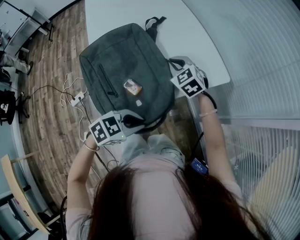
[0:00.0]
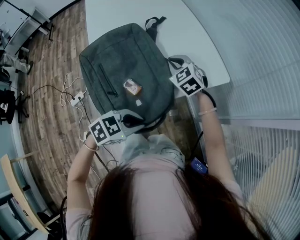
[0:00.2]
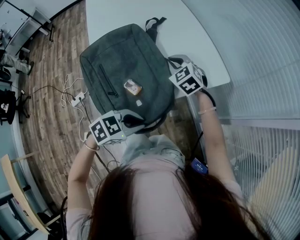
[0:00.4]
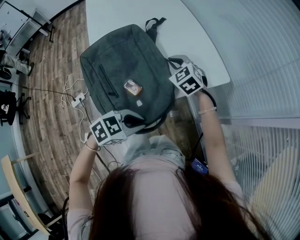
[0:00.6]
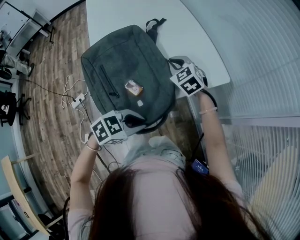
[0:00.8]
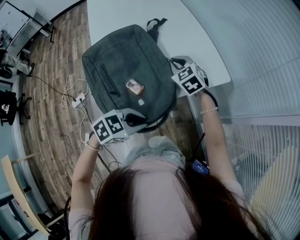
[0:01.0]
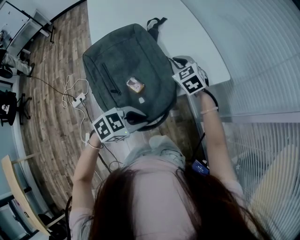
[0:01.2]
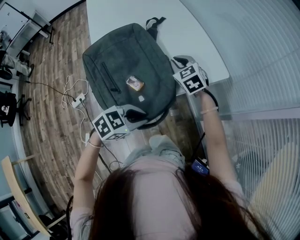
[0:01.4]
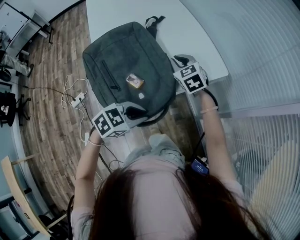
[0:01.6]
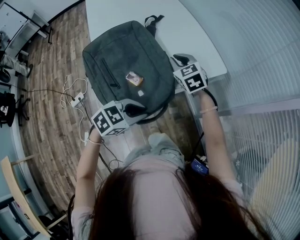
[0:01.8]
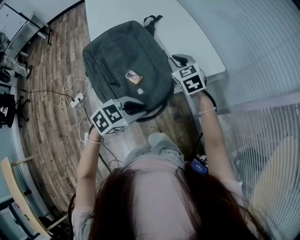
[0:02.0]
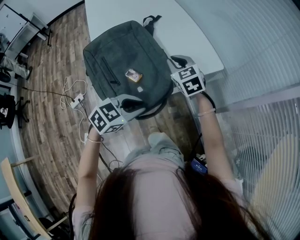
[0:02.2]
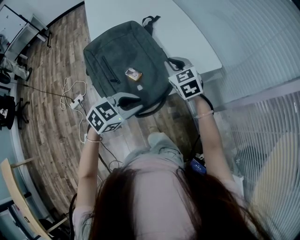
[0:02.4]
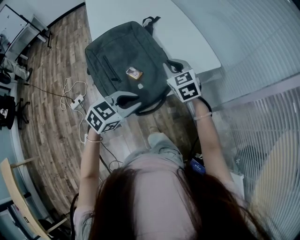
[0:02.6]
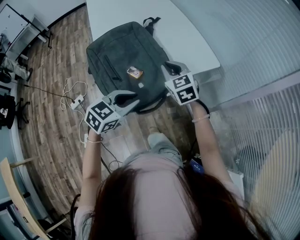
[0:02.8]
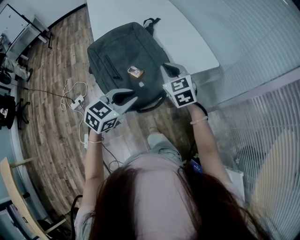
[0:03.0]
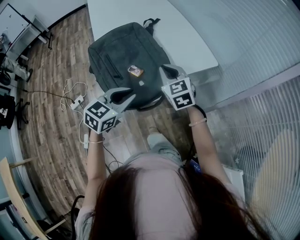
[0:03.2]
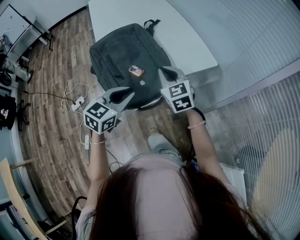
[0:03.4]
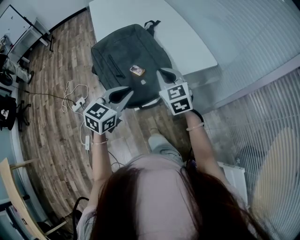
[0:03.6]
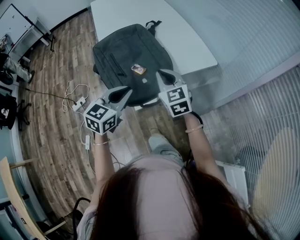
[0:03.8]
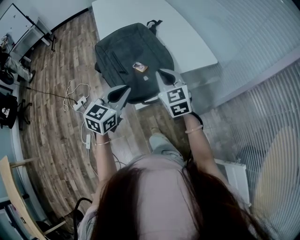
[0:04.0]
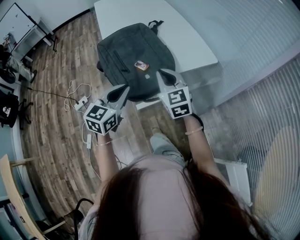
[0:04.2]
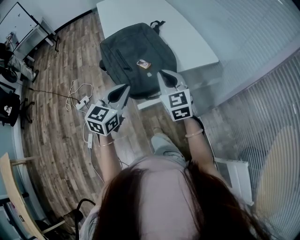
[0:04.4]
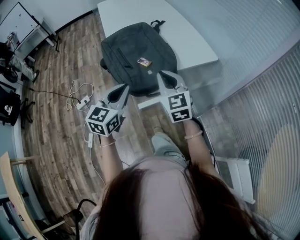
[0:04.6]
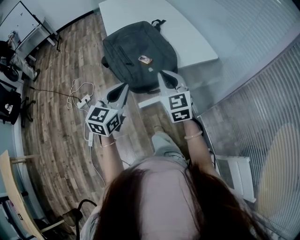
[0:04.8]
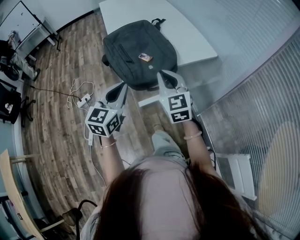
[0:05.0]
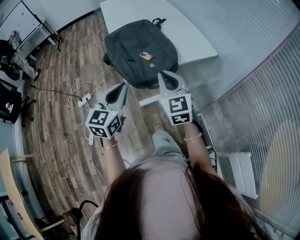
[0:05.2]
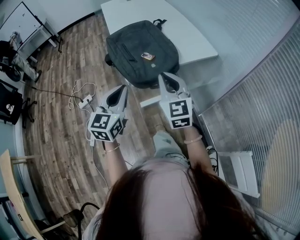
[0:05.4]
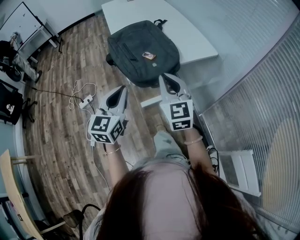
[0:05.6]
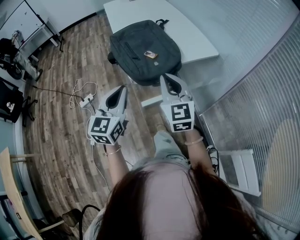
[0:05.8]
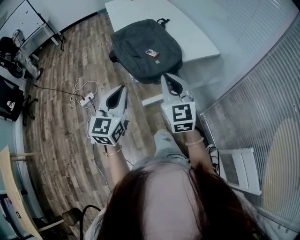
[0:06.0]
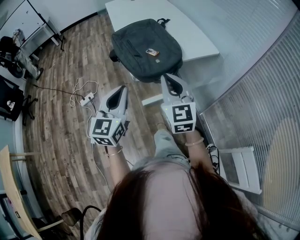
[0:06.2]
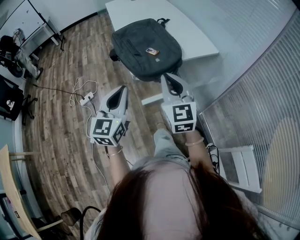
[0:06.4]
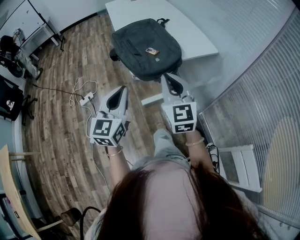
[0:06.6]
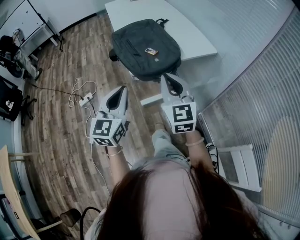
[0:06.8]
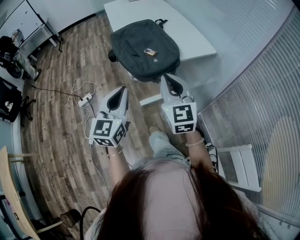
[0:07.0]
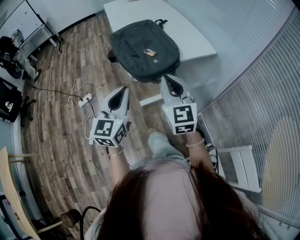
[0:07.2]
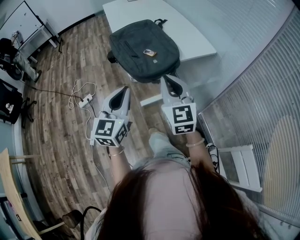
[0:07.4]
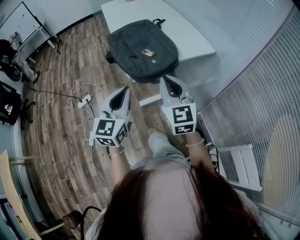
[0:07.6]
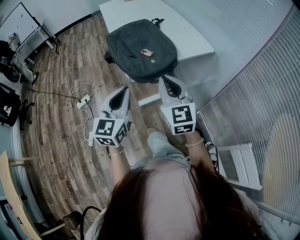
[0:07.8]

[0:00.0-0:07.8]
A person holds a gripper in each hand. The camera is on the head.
0:00.0 to 0:01.6: The grippers make only small movements.
0:01.6 to 0:03.2: The right gripper is displaced backward and upward by roughly 15 cm; the left gripper heads upward, covering about 10 cm, and swivels about 30 degrees.
0:03.2 to 0:04.6: The left gripper heads backward, upward and to the left, covering roughly 10 cm, and turns by approximately 20 degrees. The right gripper travels backward and upward by approximately 15 cm.
0:04.6 to 0:06.2: Both grippers move backward, some 15 cm.
0:06.2 to 0:07.8: The grippers move only a little.

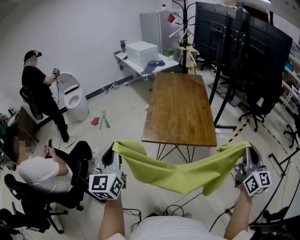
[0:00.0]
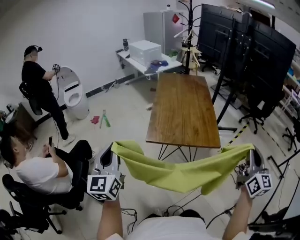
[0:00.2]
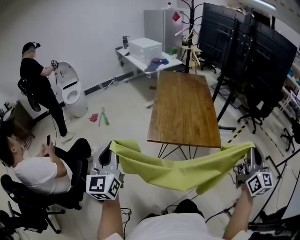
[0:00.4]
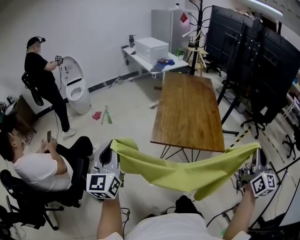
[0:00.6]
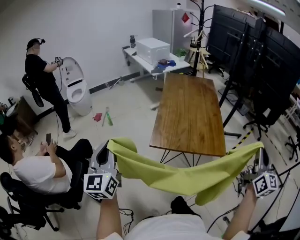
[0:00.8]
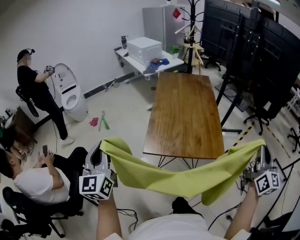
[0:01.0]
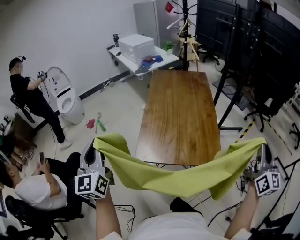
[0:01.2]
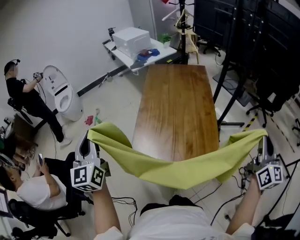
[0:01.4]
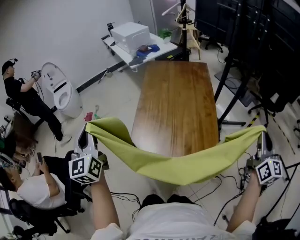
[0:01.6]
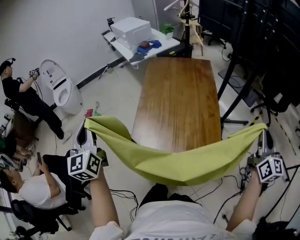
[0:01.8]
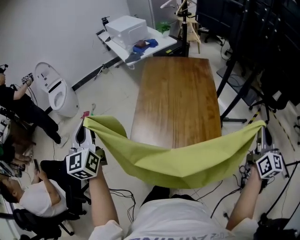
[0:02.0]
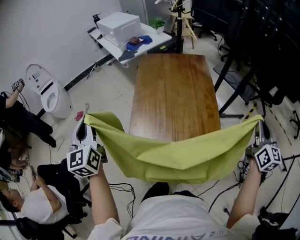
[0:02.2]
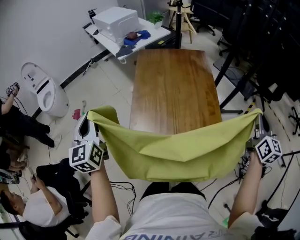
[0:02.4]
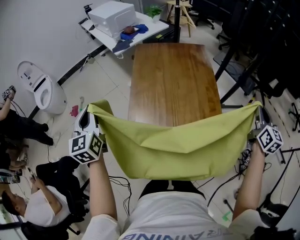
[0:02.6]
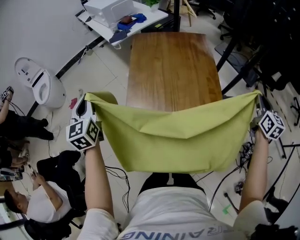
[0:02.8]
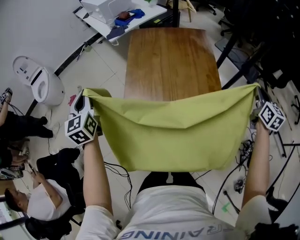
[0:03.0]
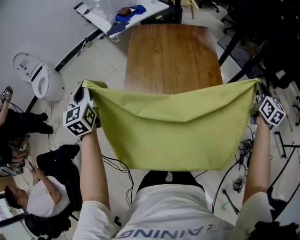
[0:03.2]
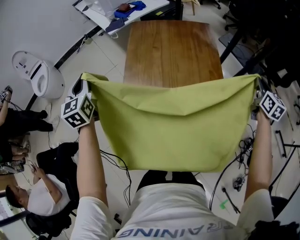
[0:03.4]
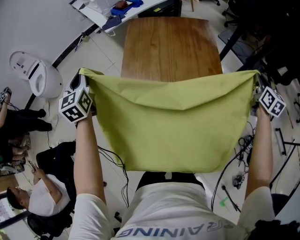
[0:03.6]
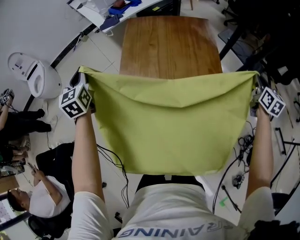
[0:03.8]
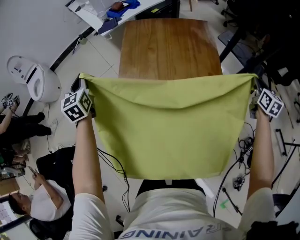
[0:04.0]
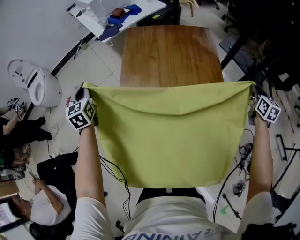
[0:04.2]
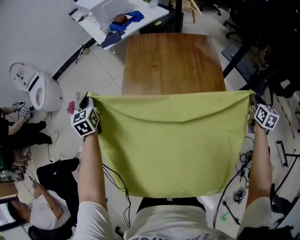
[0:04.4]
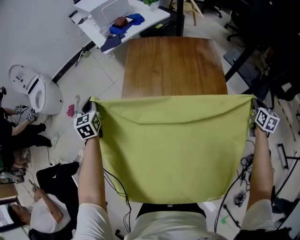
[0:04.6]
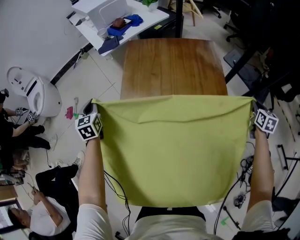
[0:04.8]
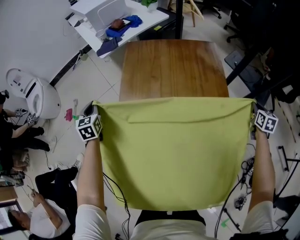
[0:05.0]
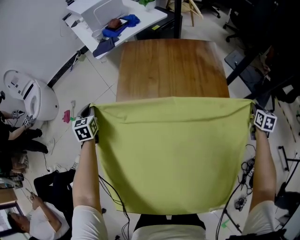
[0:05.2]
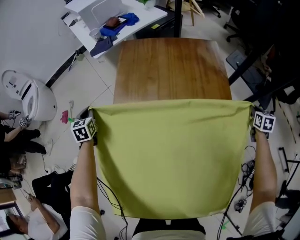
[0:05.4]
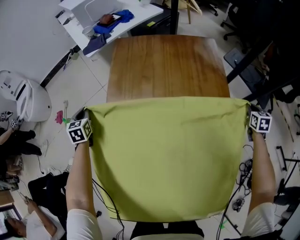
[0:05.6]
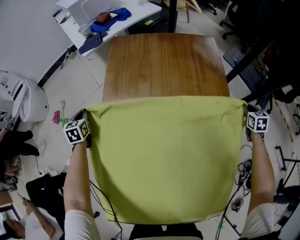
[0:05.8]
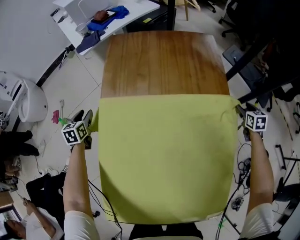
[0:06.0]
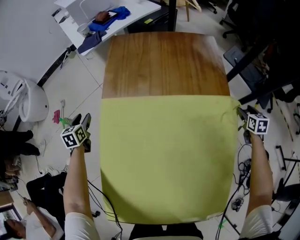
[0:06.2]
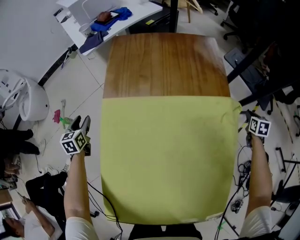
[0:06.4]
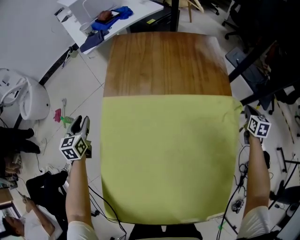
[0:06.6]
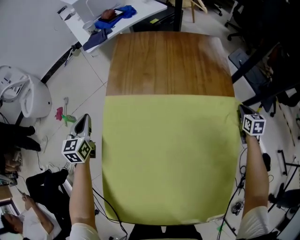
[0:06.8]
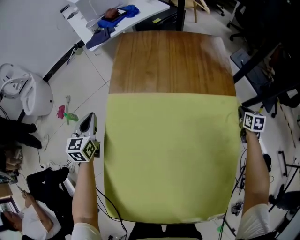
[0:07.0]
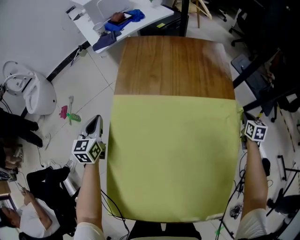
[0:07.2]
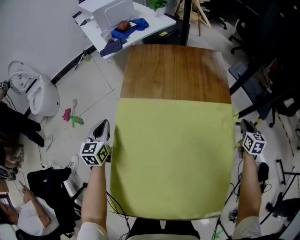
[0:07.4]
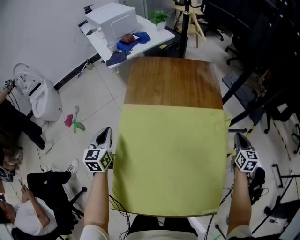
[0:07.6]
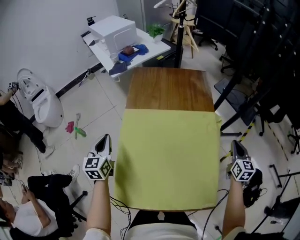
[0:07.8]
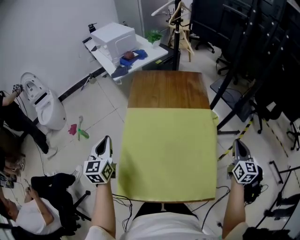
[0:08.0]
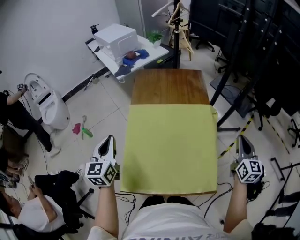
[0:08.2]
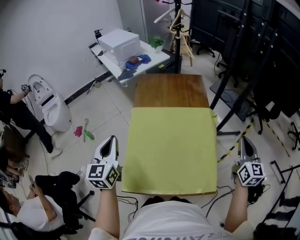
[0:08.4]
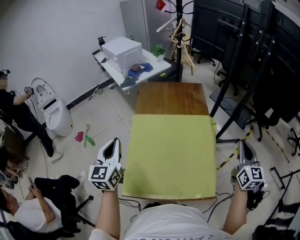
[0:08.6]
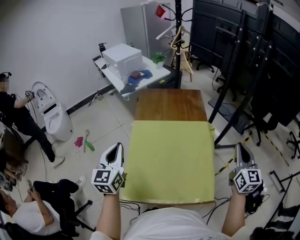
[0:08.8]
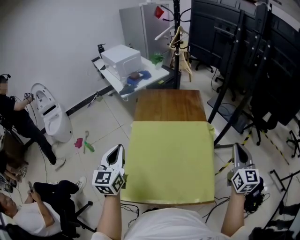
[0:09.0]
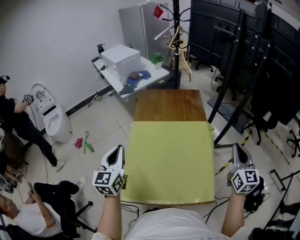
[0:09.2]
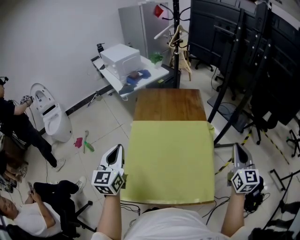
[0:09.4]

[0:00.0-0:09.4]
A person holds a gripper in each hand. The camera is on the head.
0:00.0 to 0:01.6: The two grippers go some 35 cm forward.
0:01.6 to 0:03.2: The grippers both shift forward and downward by about 35 cm. The right gripper changes its angle by approximately 20 degrees.
0:03.2 to 0:04.8: Both grippers move downward and forward, roughly 20 cm.
0:04.8 to 0:06.2: Both grippers travel together downward, about 15 cm. The left gripper opens up; the right gripper opens its fingers.
0:06.2 to 0:07.8: The right gripper shifts some 30 cm upward, backward and to the left, rotates some 30 degrees, and closes its fingers. The left gripper shifts approximately 35 cm upward, backward and to the right, changes its angle by approximately 20 degrees, and closes.
0:07.8 to 0:09.4: The left gripper heads upward, backward and to the right, covering some 25 cm; the right gripper moves upward and backward, approximately 25 cm.

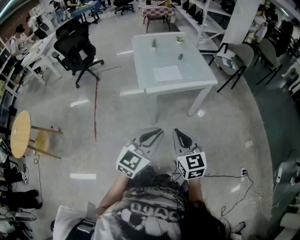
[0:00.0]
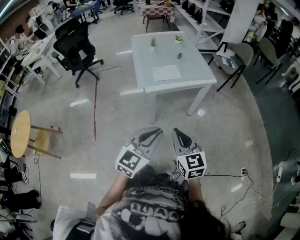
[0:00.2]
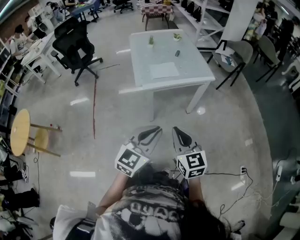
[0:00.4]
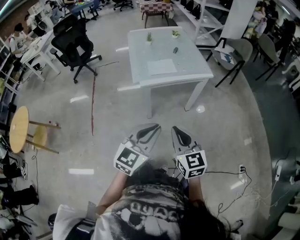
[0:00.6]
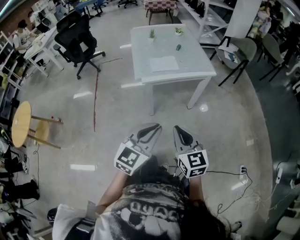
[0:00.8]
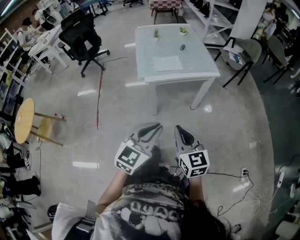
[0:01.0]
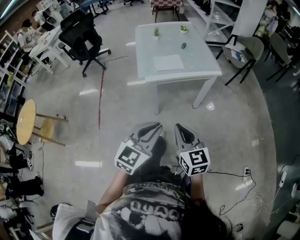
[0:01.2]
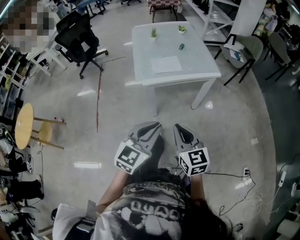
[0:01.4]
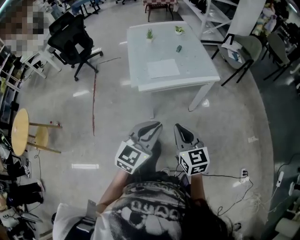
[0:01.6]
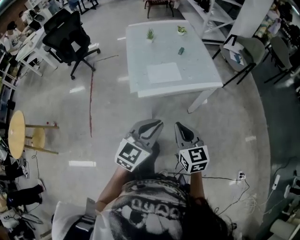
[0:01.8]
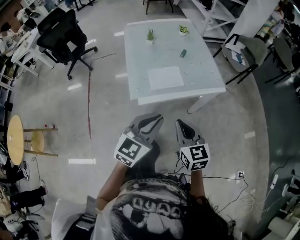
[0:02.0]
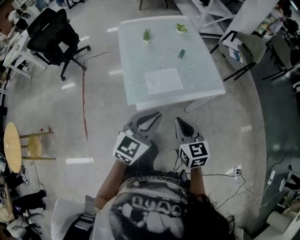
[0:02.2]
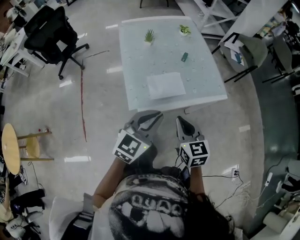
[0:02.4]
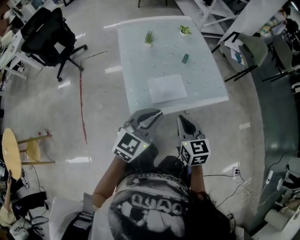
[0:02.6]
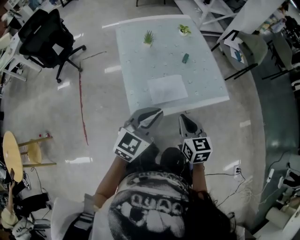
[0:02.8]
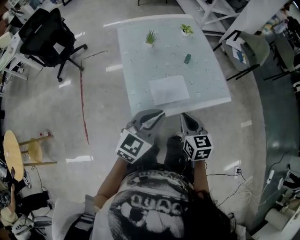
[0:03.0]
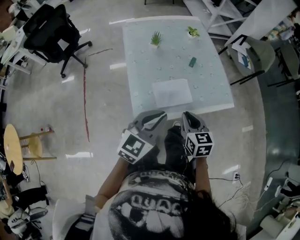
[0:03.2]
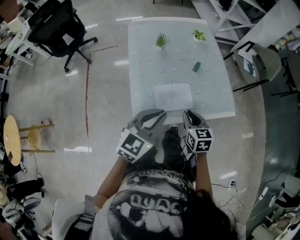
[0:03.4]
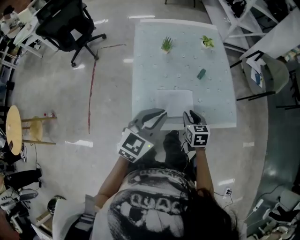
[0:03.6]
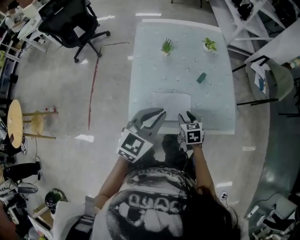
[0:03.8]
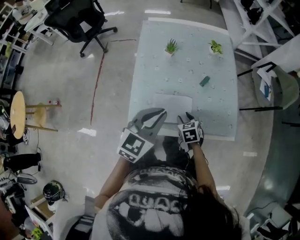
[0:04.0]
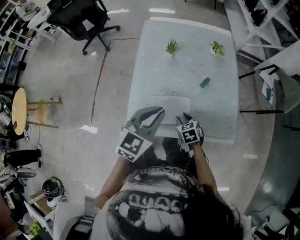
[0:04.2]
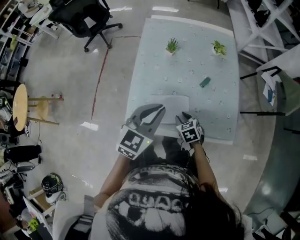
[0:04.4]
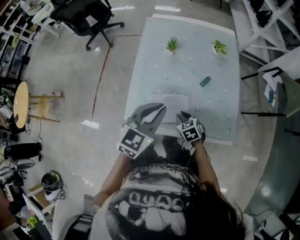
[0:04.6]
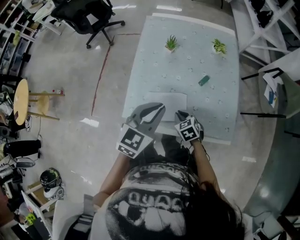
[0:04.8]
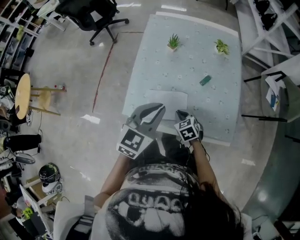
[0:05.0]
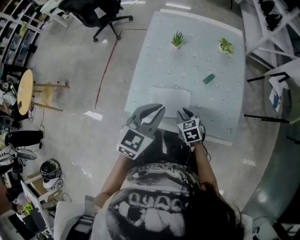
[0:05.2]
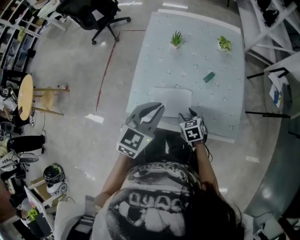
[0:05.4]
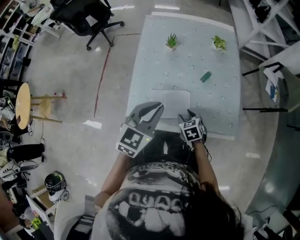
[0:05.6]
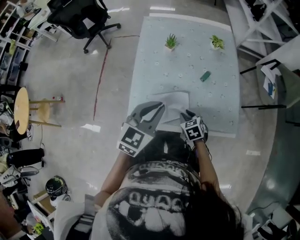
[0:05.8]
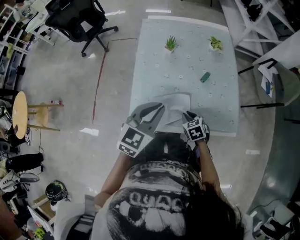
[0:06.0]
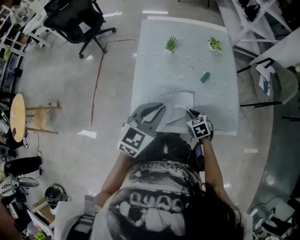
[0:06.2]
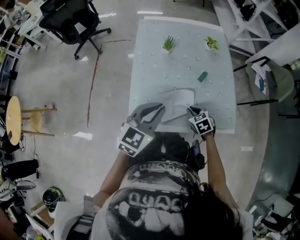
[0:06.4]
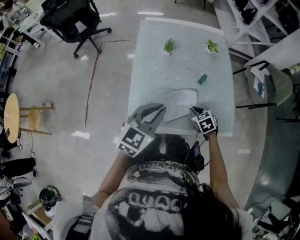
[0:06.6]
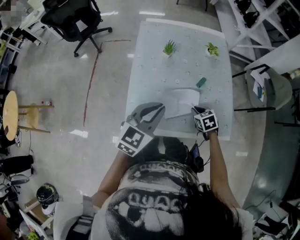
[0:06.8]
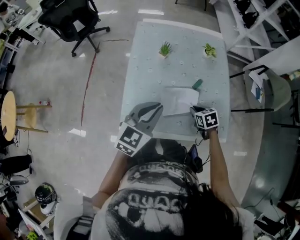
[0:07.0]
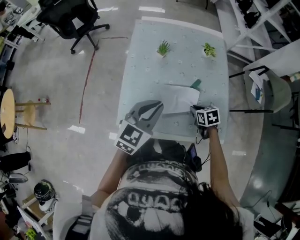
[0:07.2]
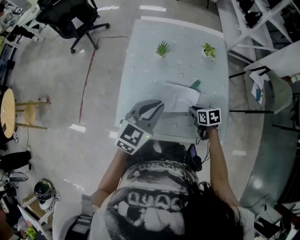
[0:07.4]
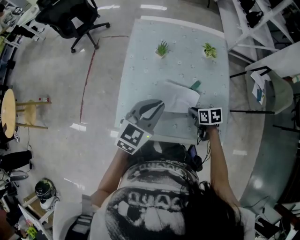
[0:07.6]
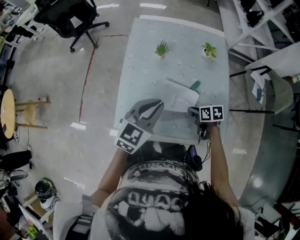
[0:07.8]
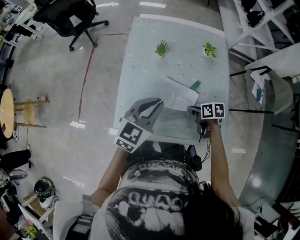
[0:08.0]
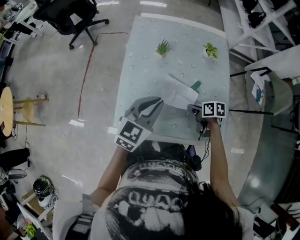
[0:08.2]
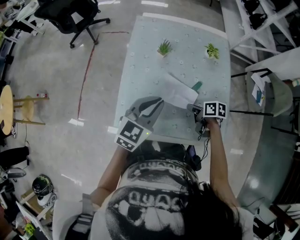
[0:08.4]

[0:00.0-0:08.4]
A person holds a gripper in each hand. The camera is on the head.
0:00.0 to 0:01.4: The two grippers go some 5 cm to the right.
0:01.4 to 0:02.8: The grippers both shift forward by some 35 cm.
0:02.8 to 0:04.2: The right gripper is displaced downward by some 20 cm, turns by approximately 40 degrees, and opens. The left gripper moves approximately 15 cm, and rotates roughly 20 degrees.
0:04.2 to 0:05.6: The right gripper closes and opens again.
0:05.6 to 0:07.0: The right gripper is displaced forward and to the right by approximately 10 cm, and closes up.
0:07.0 to 0:08.4: The left gripper shifts by approximately 5 cm. The right gripper changes its angle by some 40 degrees.
